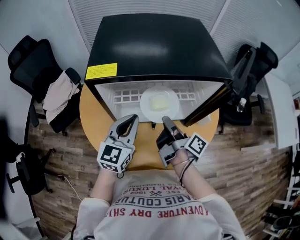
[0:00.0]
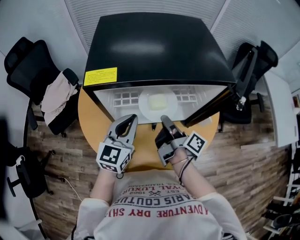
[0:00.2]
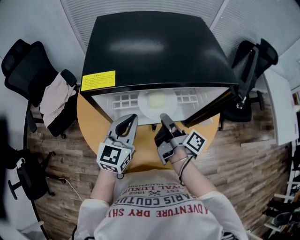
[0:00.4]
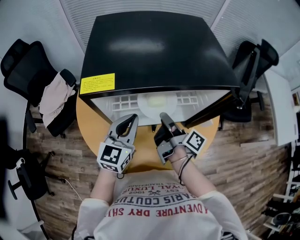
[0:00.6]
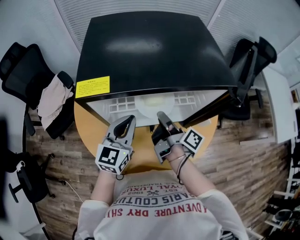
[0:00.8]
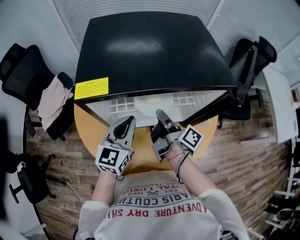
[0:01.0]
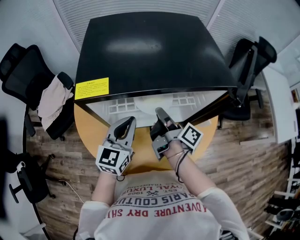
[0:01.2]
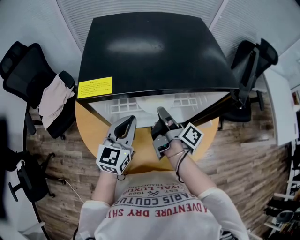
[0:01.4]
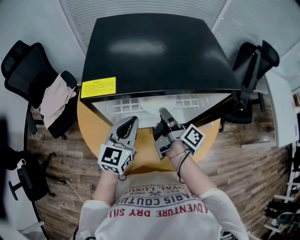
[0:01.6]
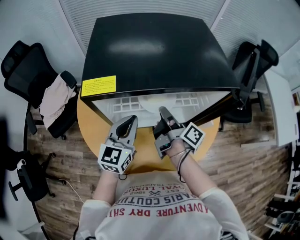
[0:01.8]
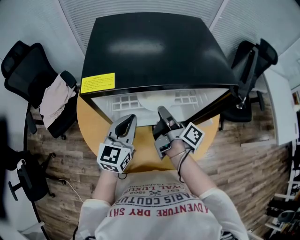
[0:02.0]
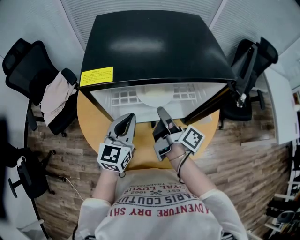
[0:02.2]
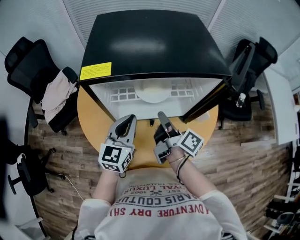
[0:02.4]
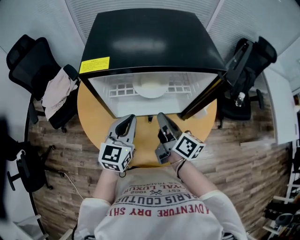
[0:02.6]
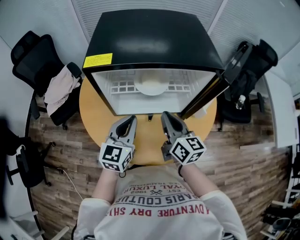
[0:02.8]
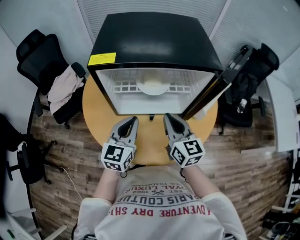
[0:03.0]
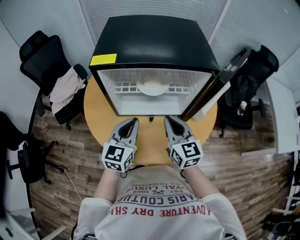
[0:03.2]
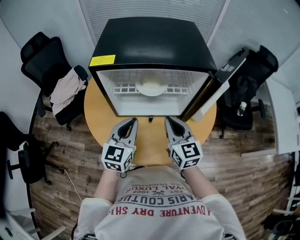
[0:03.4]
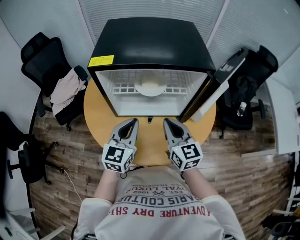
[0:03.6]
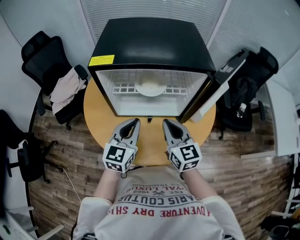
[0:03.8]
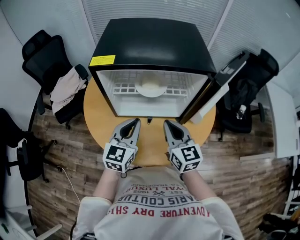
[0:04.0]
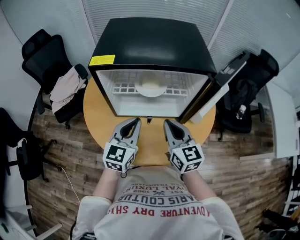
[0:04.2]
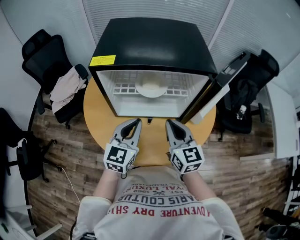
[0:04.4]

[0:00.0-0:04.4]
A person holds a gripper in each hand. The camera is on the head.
0:01.4 to 0:03.0: The left gripper shifts by roughly 10 cm.

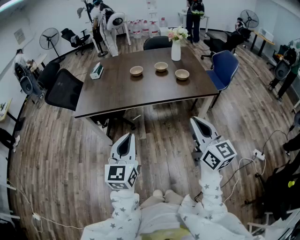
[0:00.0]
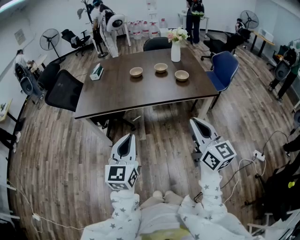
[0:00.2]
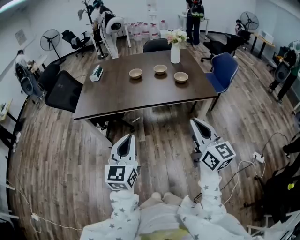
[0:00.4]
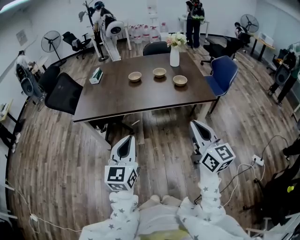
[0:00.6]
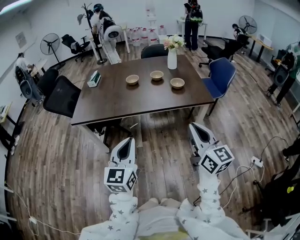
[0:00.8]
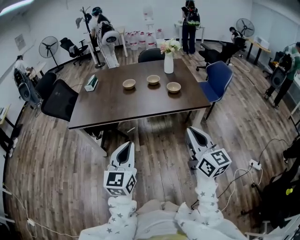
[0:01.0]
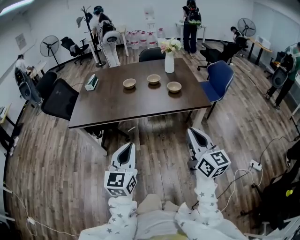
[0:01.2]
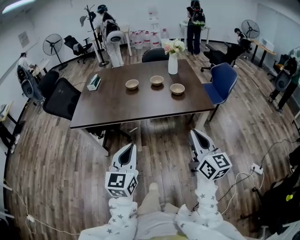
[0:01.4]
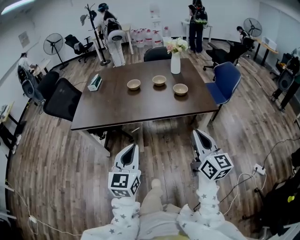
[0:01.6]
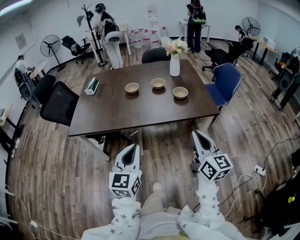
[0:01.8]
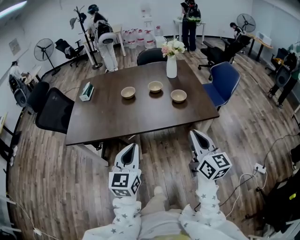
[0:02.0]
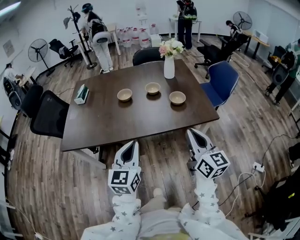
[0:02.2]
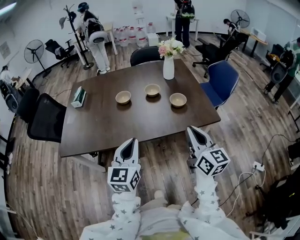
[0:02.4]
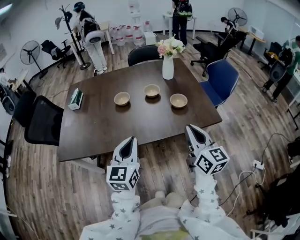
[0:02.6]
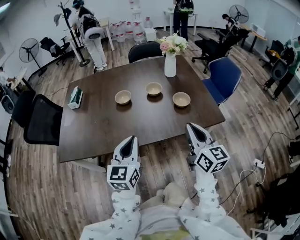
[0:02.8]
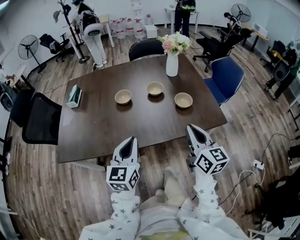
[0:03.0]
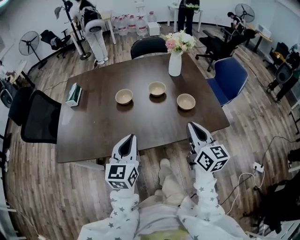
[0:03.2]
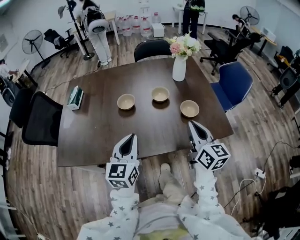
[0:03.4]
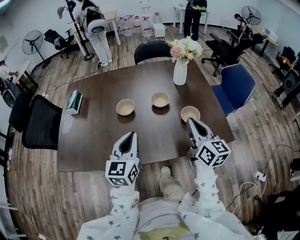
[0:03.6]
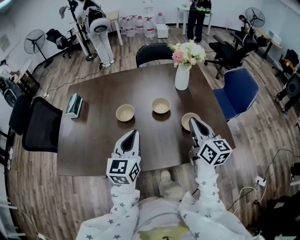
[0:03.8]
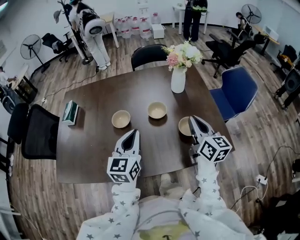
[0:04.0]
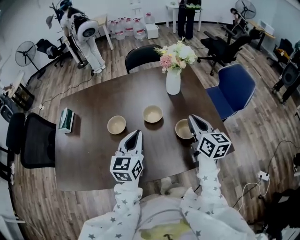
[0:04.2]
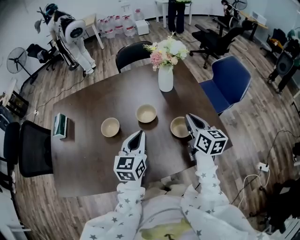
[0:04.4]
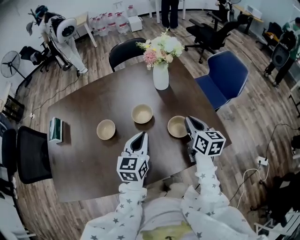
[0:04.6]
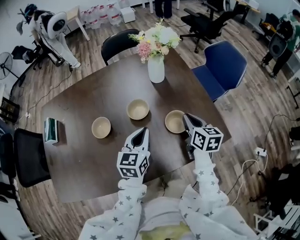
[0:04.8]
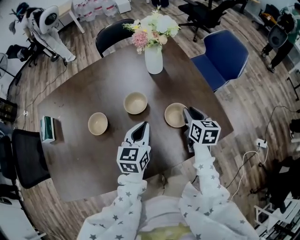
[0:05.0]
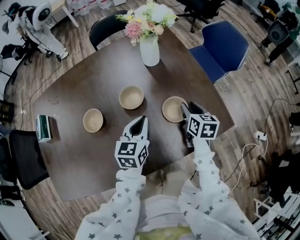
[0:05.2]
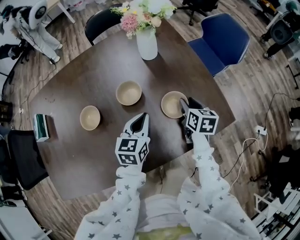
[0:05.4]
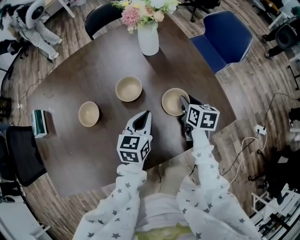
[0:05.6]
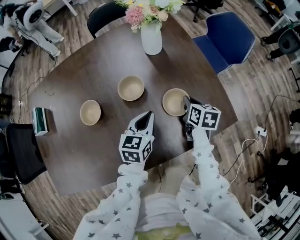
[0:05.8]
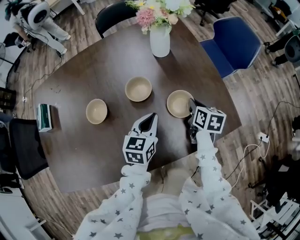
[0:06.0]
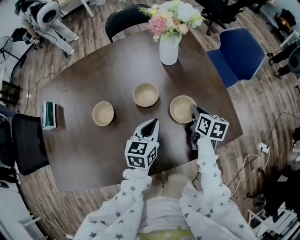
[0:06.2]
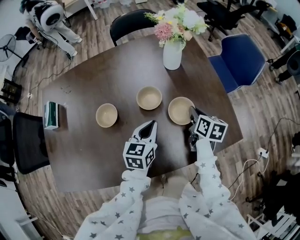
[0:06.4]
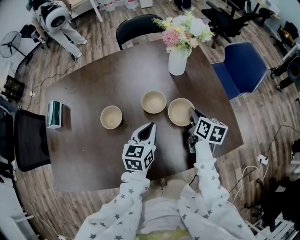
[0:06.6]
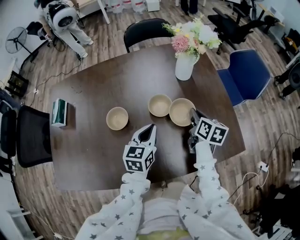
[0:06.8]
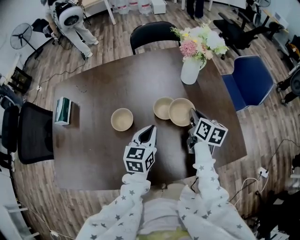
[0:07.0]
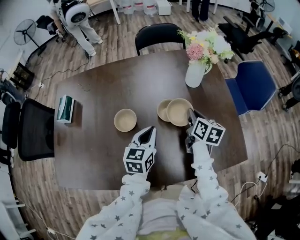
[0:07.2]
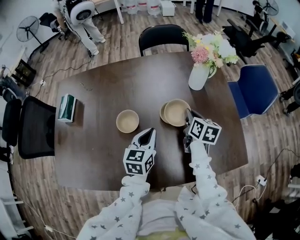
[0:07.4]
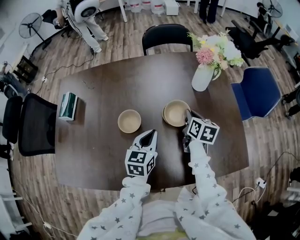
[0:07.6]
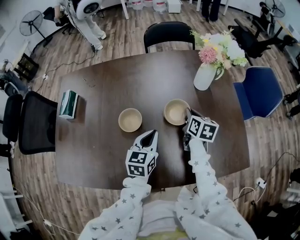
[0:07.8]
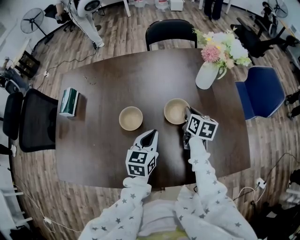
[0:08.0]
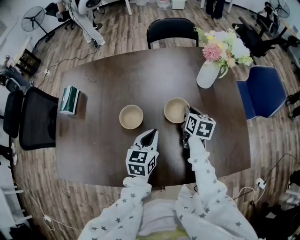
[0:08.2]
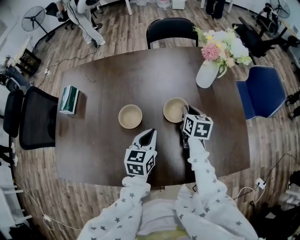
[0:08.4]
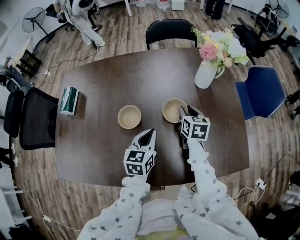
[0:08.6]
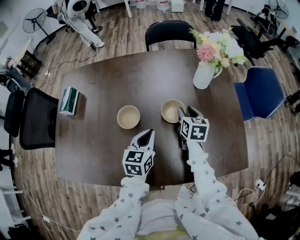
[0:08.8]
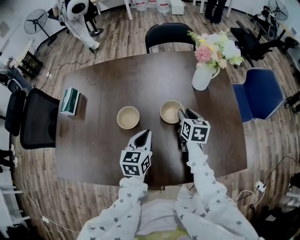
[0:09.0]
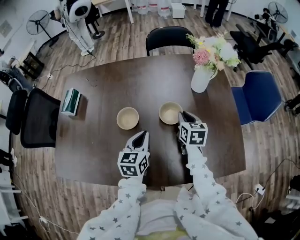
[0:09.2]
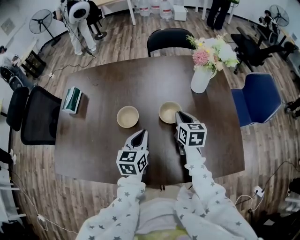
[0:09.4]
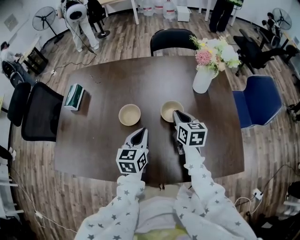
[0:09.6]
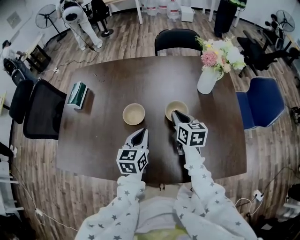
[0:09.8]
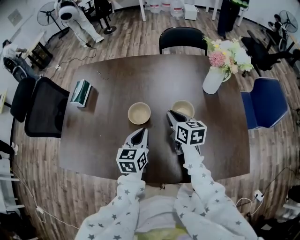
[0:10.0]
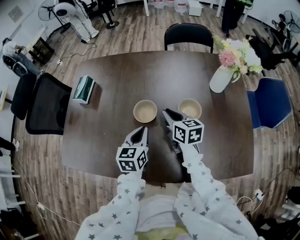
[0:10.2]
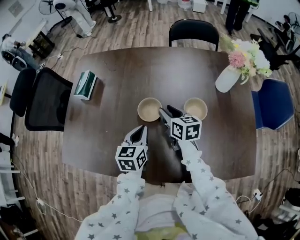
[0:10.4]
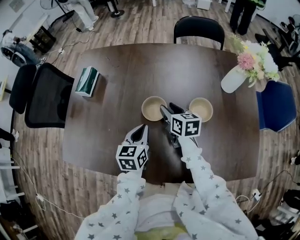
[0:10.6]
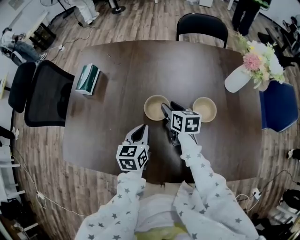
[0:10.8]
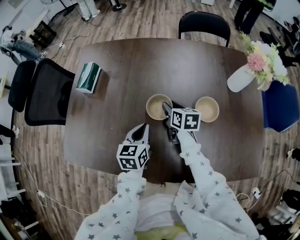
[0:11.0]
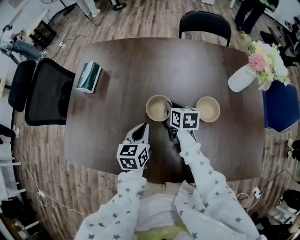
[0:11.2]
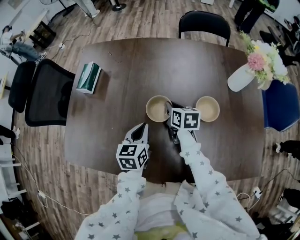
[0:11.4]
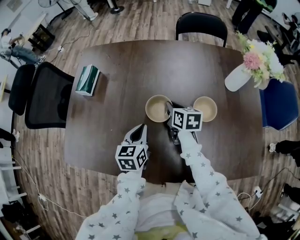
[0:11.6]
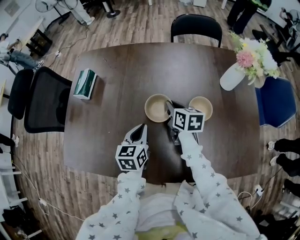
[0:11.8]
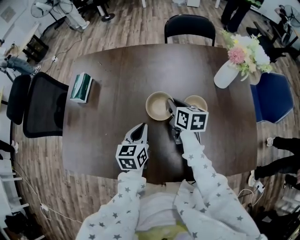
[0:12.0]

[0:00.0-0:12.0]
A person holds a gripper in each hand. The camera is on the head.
0:00.0 to 0:01.6: Both grippers travel together to the right and forward, about 10 cm.
0:01.6 to 0:03.0: Both grippers move forward, approximately 25 cm.
0:03.0 to 0:04.4: The two grippers go roughly 25 cm forward.
0:04.4 to 0:06.0: The right gripper shifts about 15 cm downward, turns by approximately 30 degrees, and opens, then closes again. Meanwhile the left gripper moves downward and to the right, roughly 15 cm, and swivels some 20 degrees.
0:06.0 to 0:07.6: The right gripper heads to the left and forward, covering approximately 20 cm, while the left gripper moves to the left, roughly 15 cm.
0:07.6 to 0:09.0: The right gripper opens up.
0:09.0 to 0:10.4: The left gripper is displaced to the left by approximately 10 cm; the right gripper moves to the left, approximately 20 cm, swivels some 30 degrees, and closes, then opens again.
0:10.4 to 0:12.0: The right gripper closes its fingers.

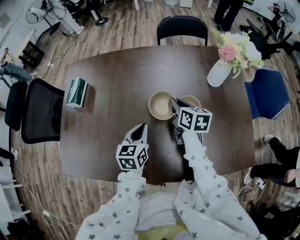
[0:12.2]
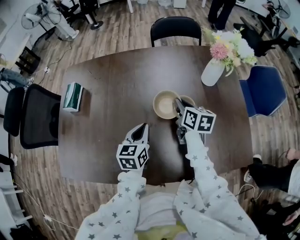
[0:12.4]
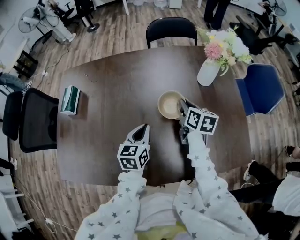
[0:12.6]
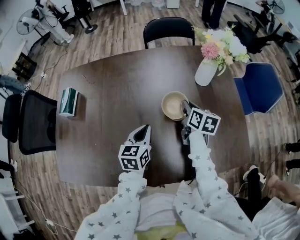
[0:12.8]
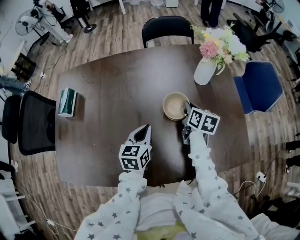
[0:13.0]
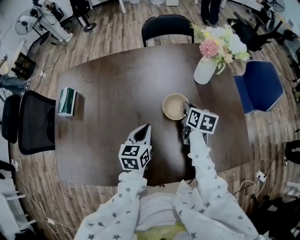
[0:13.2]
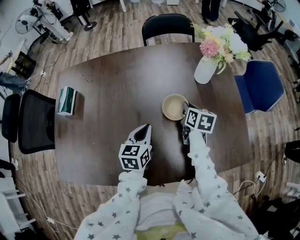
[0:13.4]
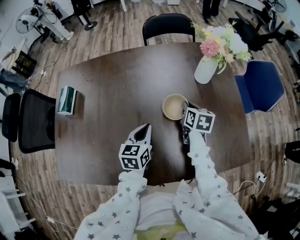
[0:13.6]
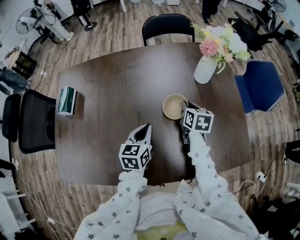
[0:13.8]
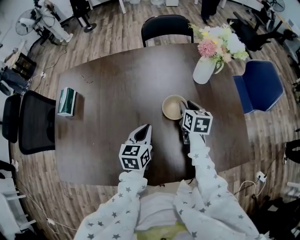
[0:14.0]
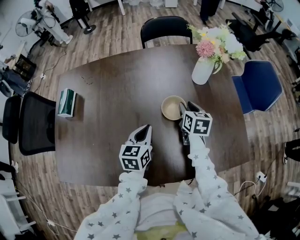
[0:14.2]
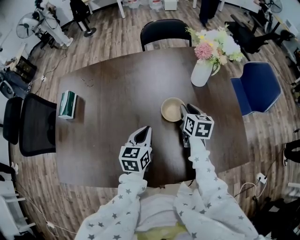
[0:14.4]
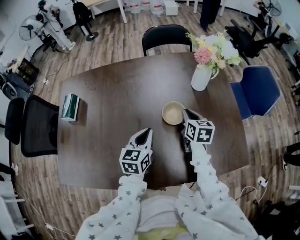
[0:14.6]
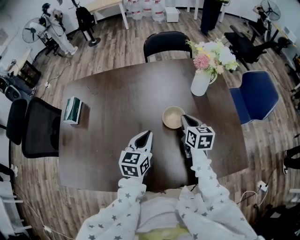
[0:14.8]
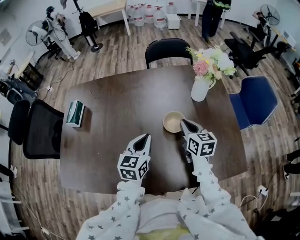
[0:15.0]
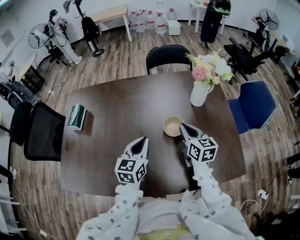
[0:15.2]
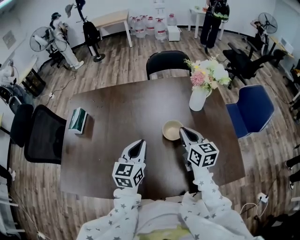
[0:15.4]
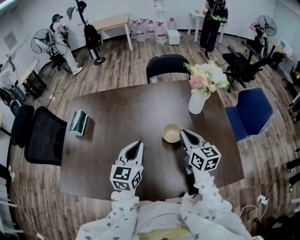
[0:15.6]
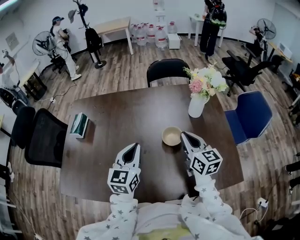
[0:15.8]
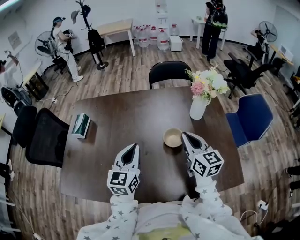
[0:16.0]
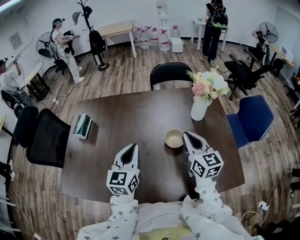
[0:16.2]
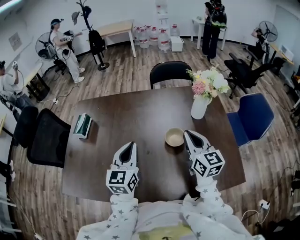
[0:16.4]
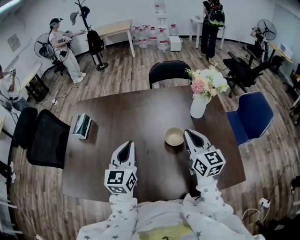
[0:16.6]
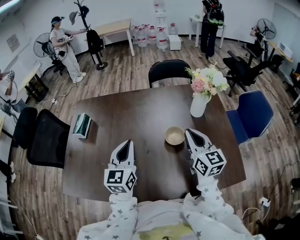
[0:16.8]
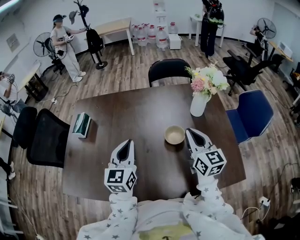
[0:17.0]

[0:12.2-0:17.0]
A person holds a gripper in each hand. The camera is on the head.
0:12.2 to 0:13.8: The right gripper moves to the right, approximately 15 cm. Meanwhile the left gripper is displaced to the right by approximately 10 cm.
0:13.8 to 0:15.4: The left gripper goes roughly 10 cm upward, while the right gripper moves upward and backward, about 15 cm, swivels some 30 degrees, and opens, then closes once more.
0:15.4 to 0:17.0: The left gripper goes approximately 10 cm upward and to the left, while the right gripper moves upward, about 5 cm.

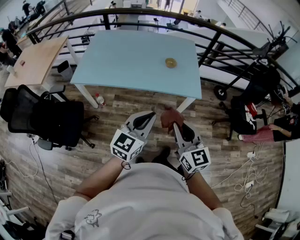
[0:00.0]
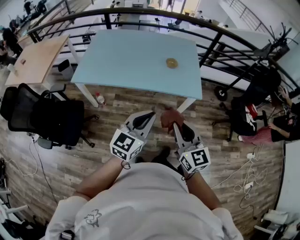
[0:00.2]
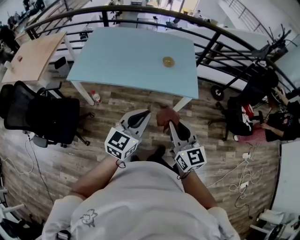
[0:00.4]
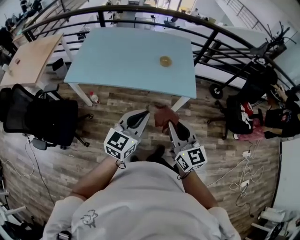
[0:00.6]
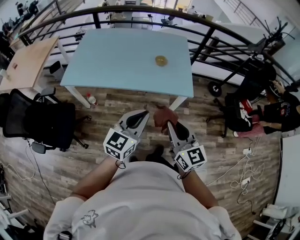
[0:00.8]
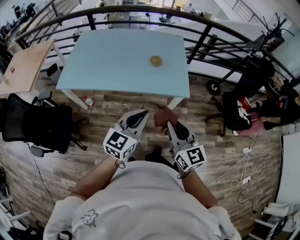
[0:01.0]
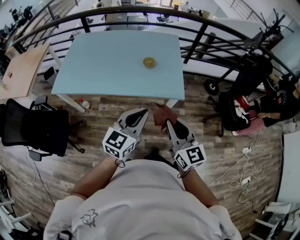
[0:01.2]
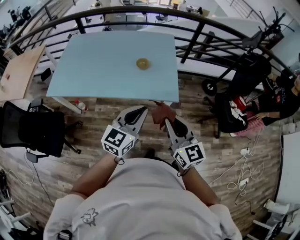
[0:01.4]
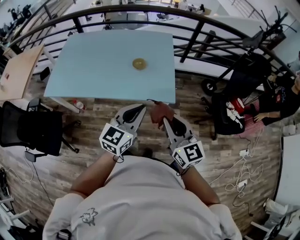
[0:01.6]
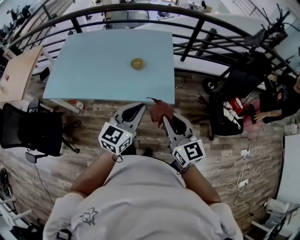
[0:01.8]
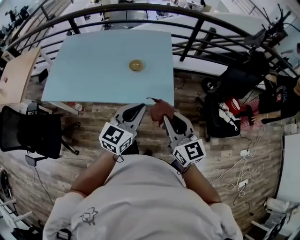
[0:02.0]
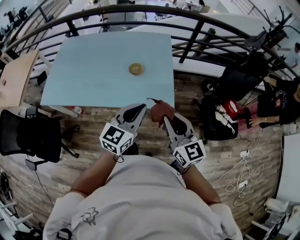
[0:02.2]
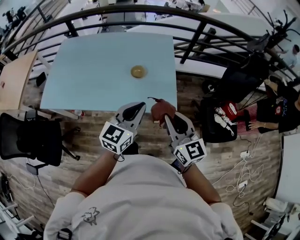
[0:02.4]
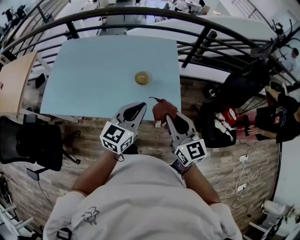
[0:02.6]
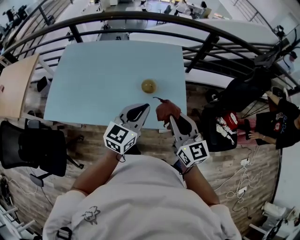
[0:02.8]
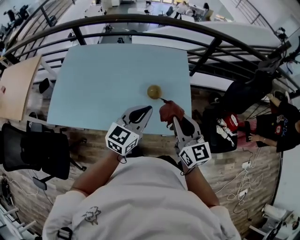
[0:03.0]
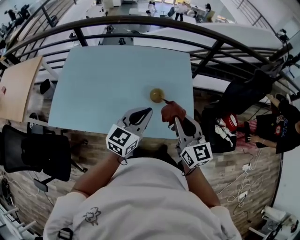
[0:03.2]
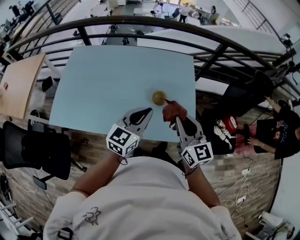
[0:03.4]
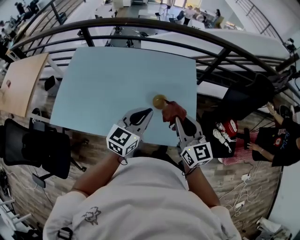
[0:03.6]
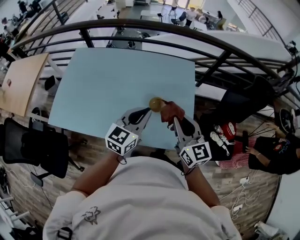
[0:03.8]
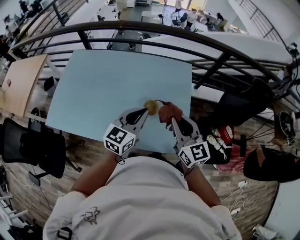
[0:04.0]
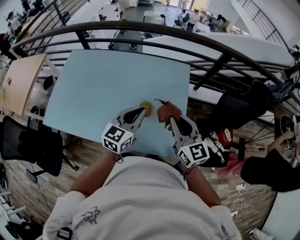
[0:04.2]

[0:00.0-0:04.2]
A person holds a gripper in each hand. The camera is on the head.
0:00.0 to 0:01.4: The two grippers go about 20 cm to the right and forward.
0:01.4 to 0:02.8: The grippers both shift forward by about 25 cm.
0:02.8 to 0:04.2: The two grippers go roughly 15 cm forward.
